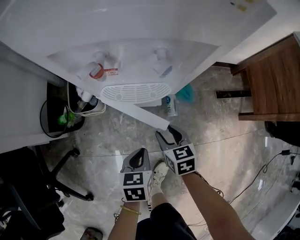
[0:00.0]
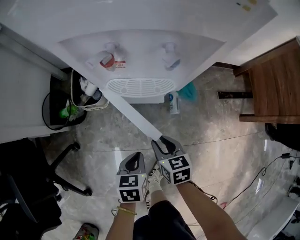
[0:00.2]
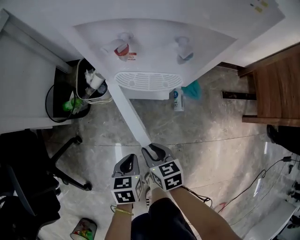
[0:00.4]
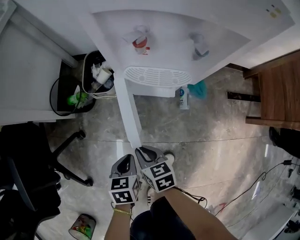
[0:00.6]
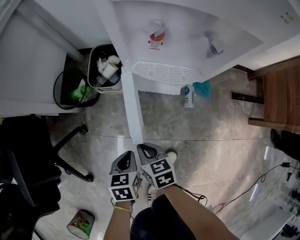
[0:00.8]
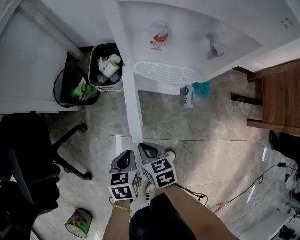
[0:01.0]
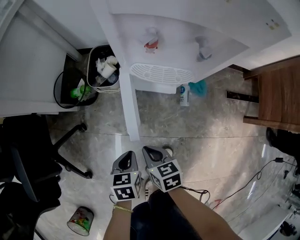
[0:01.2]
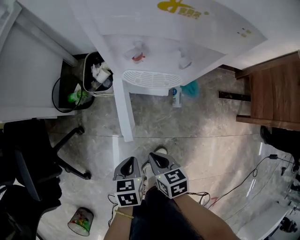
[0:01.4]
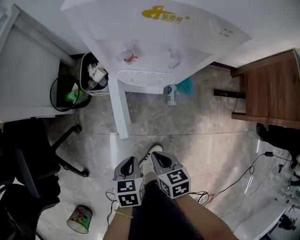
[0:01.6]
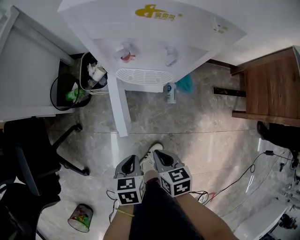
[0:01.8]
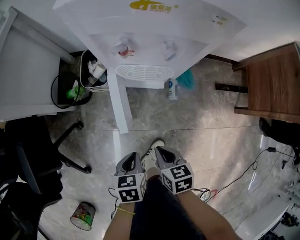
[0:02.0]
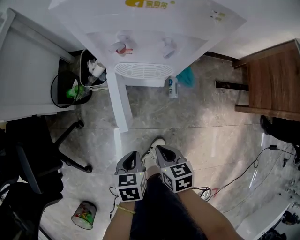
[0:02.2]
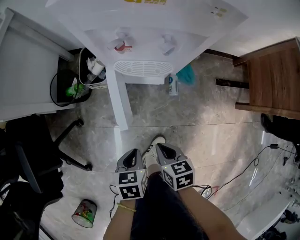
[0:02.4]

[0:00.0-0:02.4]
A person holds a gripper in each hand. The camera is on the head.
0:00.0 to 0:01.2: The grippers both shift to the left and backward by roughly 15 cm. The right gripper closes its fingers.
0:01.2 to 0:02.4: The left gripper moves upward and to the right, roughly 10 cm. The right gripper moves to the right and upward, about 10 cm.

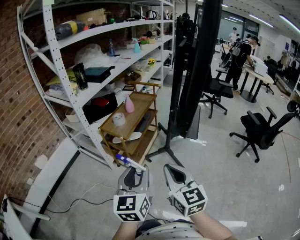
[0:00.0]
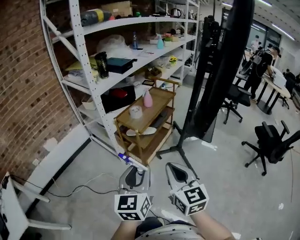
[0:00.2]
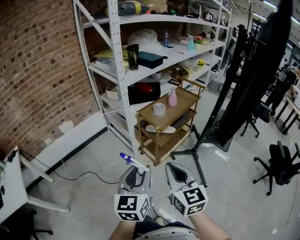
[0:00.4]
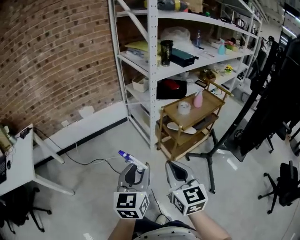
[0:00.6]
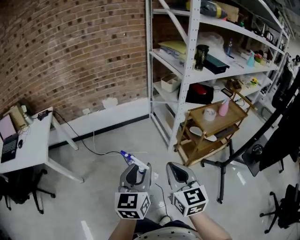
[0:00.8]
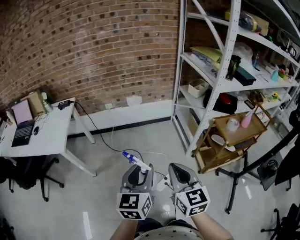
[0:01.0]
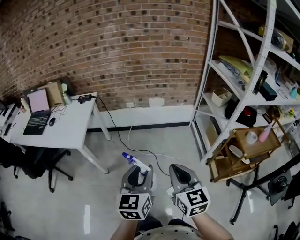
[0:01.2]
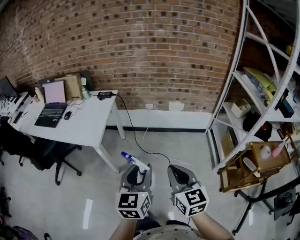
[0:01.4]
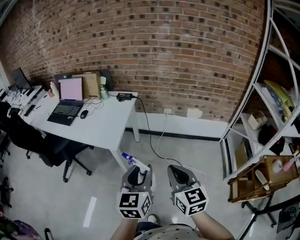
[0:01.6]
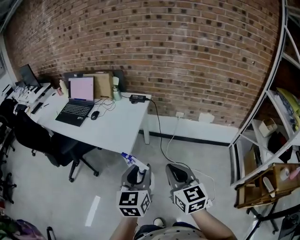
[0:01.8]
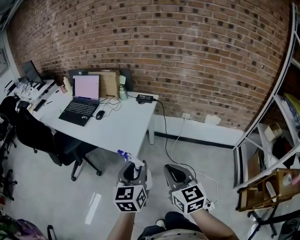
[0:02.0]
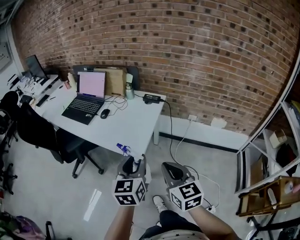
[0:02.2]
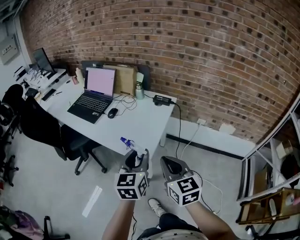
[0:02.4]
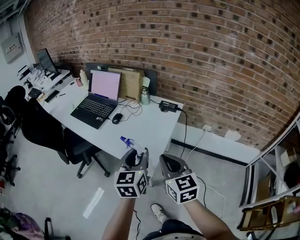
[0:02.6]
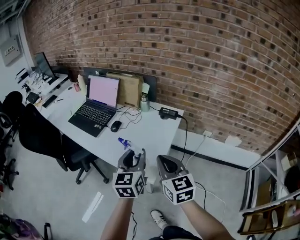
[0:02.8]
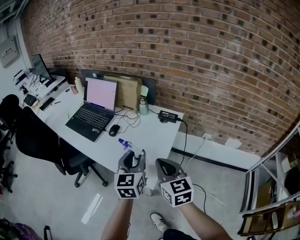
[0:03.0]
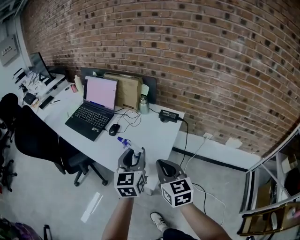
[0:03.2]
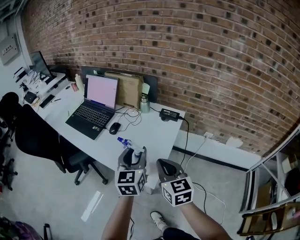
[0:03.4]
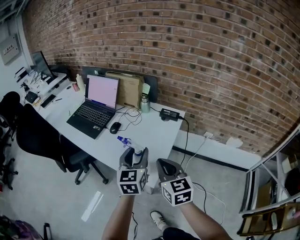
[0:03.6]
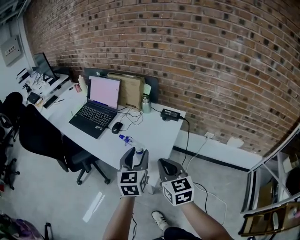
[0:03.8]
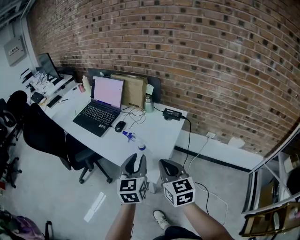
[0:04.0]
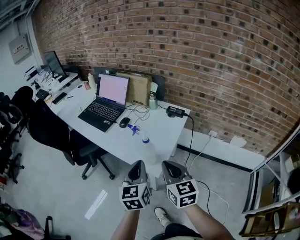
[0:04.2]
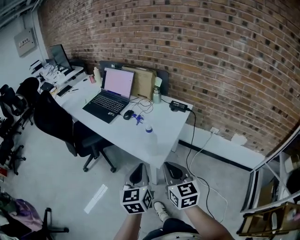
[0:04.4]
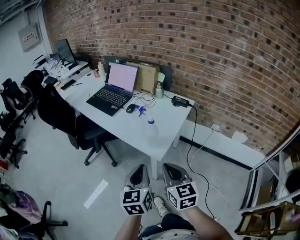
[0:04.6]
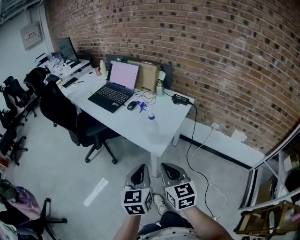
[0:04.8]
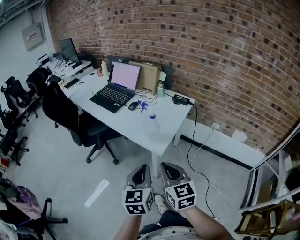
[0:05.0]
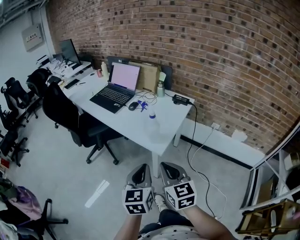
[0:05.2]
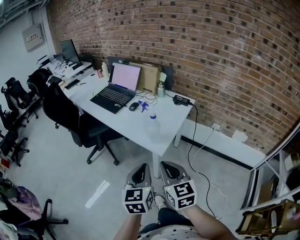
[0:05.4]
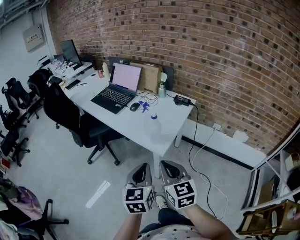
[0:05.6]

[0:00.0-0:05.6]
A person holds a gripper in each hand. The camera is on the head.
0:00.0 to 0:01.4: The two grippers travel together, some 60 cm. The left gripper changes its angle by about 60 degrees; the right gripper rotates approximately 70 degrees.
0:01.4 to 0:02.8: Both grippers are carried forward and to the left, about 50 cm. The left gripper turns by about 20 degrees; the right gripper rotates some 20 degrees.
0:02.8 to 0:04.2: The left gripper heads backward, covering roughly 10 cm, and closes its fingers. Meanwhile the right gripper is displaced backward by about 5 cm.
0:04.2 to 0:05.6: The right gripper travels backward and to the left by about 15 cm. Meanwhile the left gripper heads backward, covering approximately 15 cm.

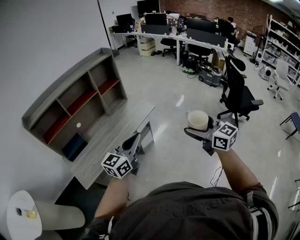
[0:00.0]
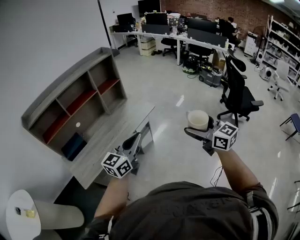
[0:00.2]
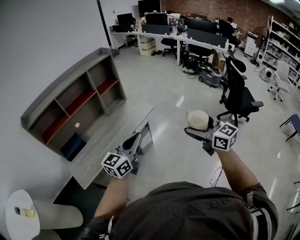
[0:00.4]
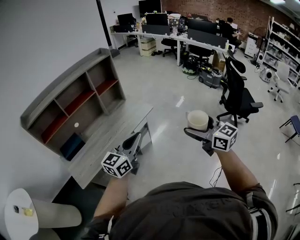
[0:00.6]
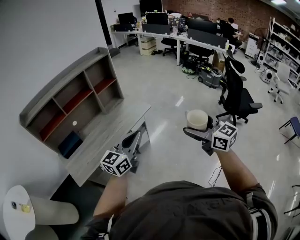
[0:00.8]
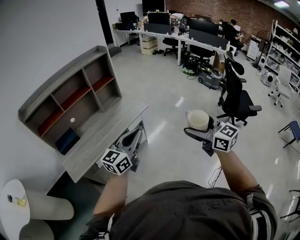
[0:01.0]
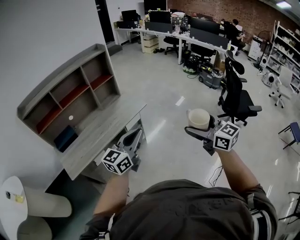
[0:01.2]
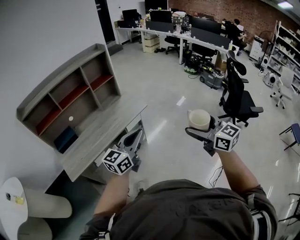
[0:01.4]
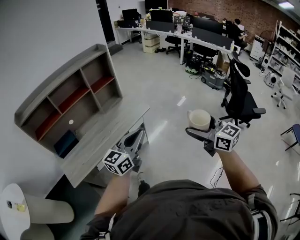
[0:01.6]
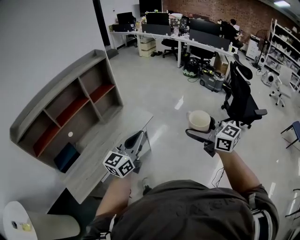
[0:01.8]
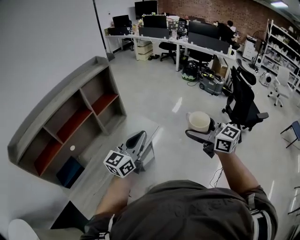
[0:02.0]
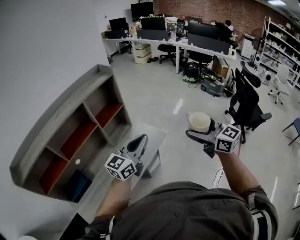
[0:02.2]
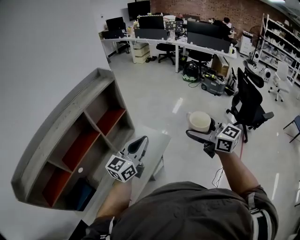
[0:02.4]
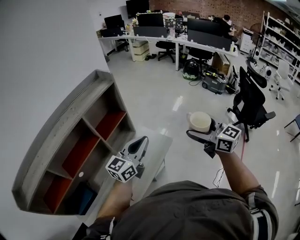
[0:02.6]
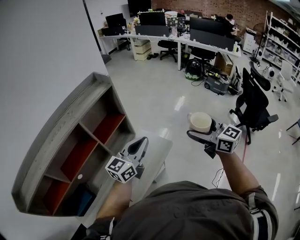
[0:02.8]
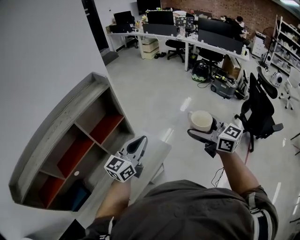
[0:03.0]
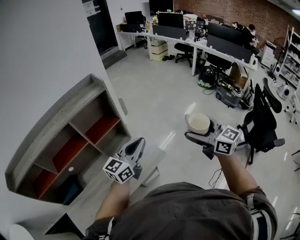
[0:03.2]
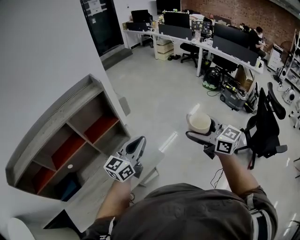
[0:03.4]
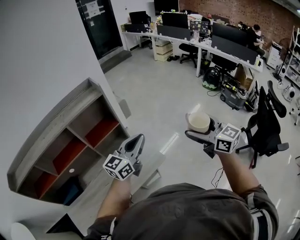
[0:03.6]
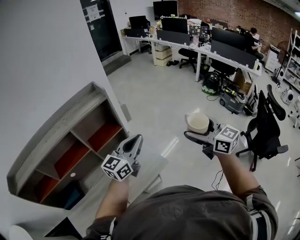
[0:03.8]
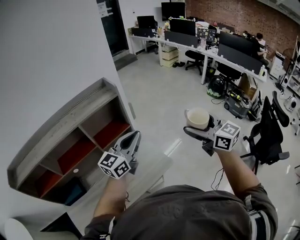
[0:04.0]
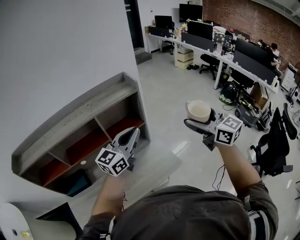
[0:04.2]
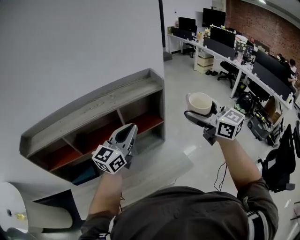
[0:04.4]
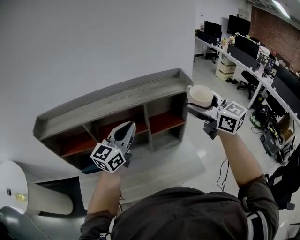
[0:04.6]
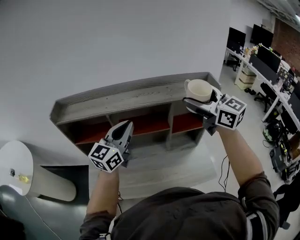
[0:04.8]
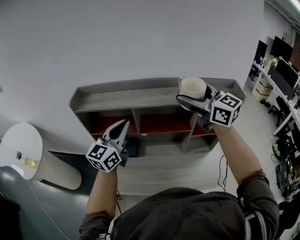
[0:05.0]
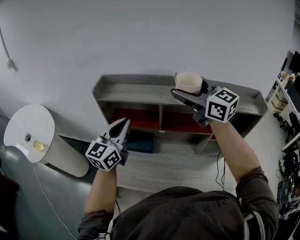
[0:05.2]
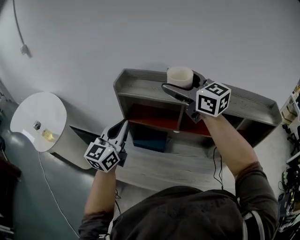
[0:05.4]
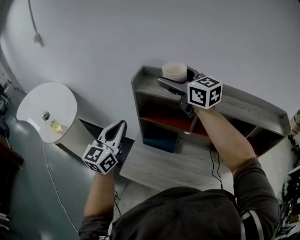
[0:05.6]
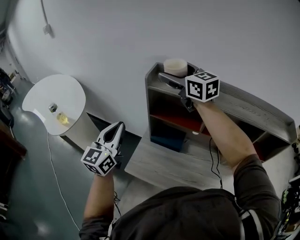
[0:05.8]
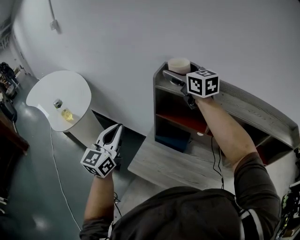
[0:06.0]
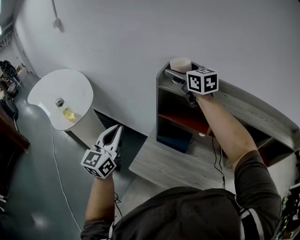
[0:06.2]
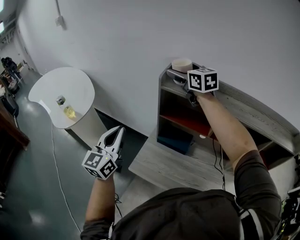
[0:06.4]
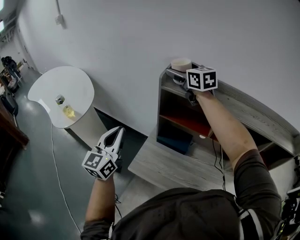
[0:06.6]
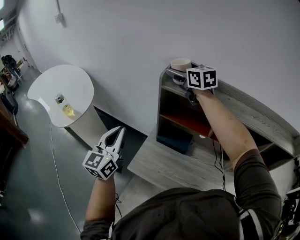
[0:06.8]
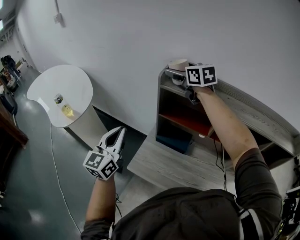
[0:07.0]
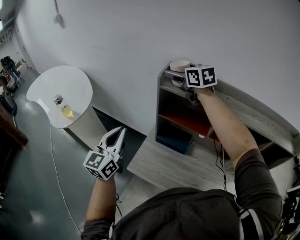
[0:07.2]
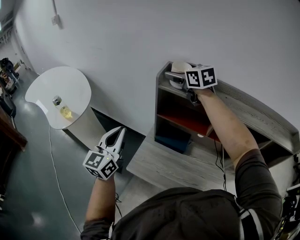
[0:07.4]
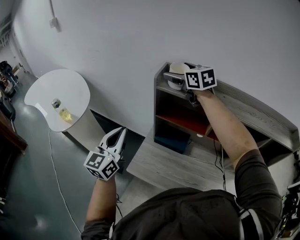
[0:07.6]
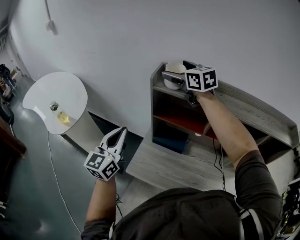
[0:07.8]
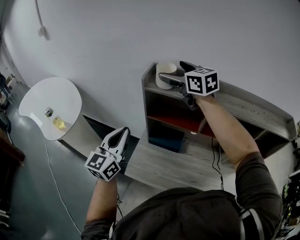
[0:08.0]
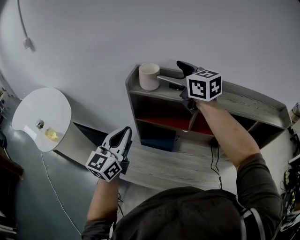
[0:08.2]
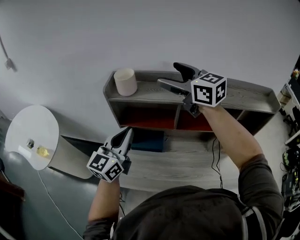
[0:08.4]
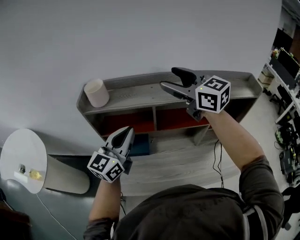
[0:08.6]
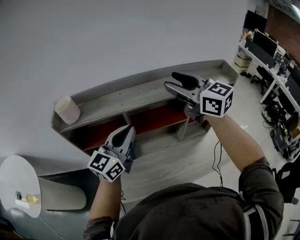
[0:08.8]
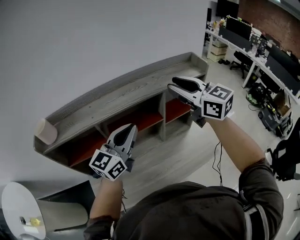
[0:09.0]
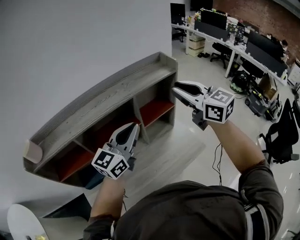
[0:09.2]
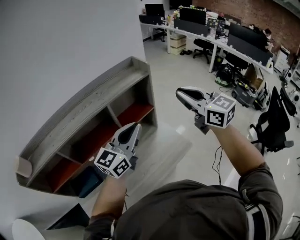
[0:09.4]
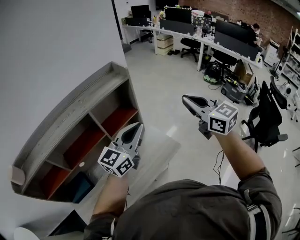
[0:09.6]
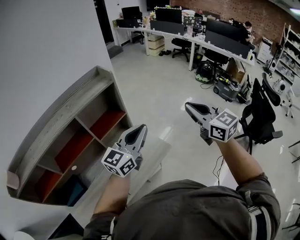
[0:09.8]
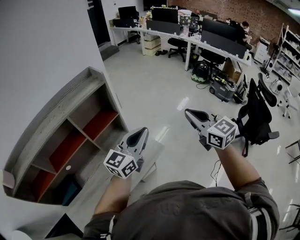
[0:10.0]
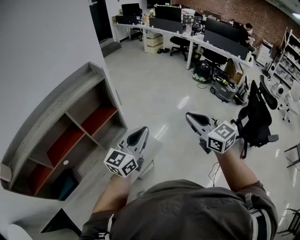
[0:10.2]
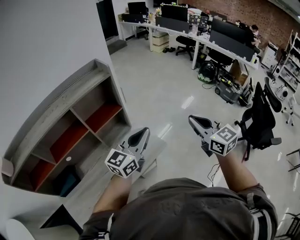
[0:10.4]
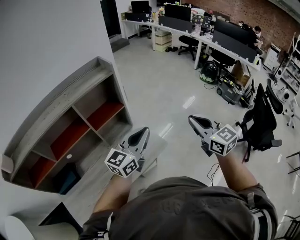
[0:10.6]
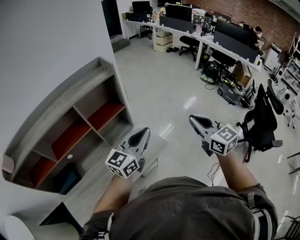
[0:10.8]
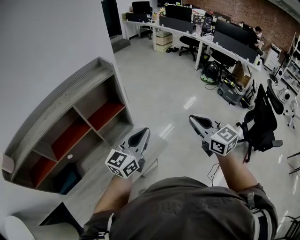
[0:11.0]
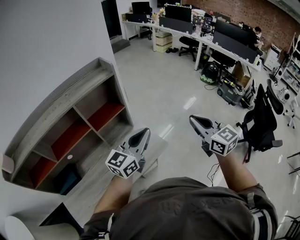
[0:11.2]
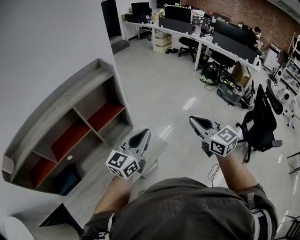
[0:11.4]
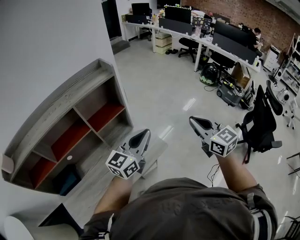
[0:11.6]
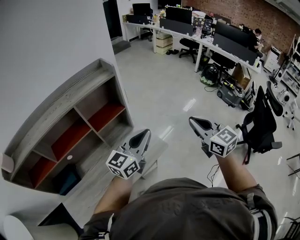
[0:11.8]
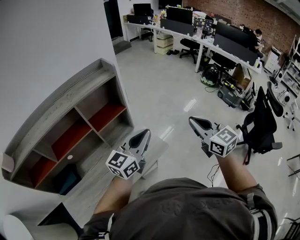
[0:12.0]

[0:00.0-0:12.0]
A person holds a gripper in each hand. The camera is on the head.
0:00.0 to 0:01.6: Both grippers move to the right and forward, about 10 cm.
0:01.6 to 0:03.0: The pair of grippers is taken forward, some 40 cm.
0:03.0 to 0:04.4: The right gripper shifts by some 25 cm, and rotates approximately 20 degrees, while the left gripper shifts by approximately 20 cm, and turns by roughly 30 degrees.
0:04.4 to 0:06.0: The pair of grippers is taken some 70 cm. The right gripper turns by roughly 40 degrees, while the left gripper swivels roughly 60 degrees.
0:06.0 to 0:07.6: The right gripper ends up about 5 cm from where it was.
0:07.6 to 0:09.0: The two grippers travel together, approximately 50 cm. The right gripper changes its angle by about 40 degrees, and closes up, while the left gripper changes its angle by about 60 degrees.
0:09.0 to 0:10.4: The two grippers travel together, about 50 cm. The left gripper swivels some 30 degrees; the right gripper changes its angle by about 30 degrees.
0:10.4 to 0:12.0: The grippers make only small movements.

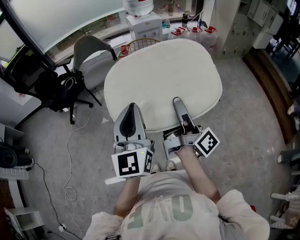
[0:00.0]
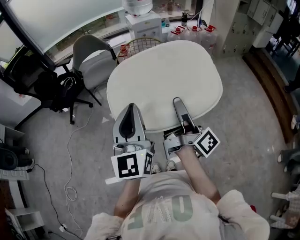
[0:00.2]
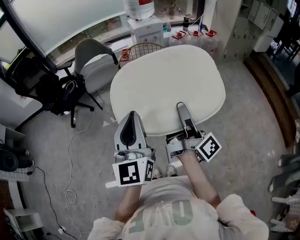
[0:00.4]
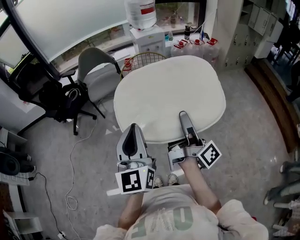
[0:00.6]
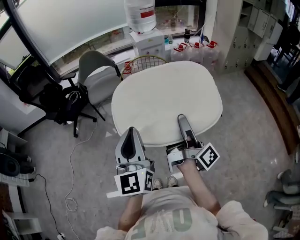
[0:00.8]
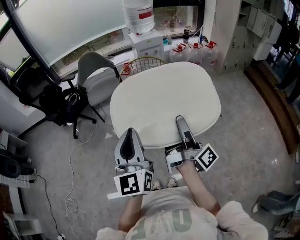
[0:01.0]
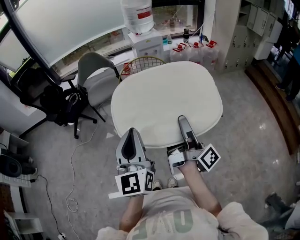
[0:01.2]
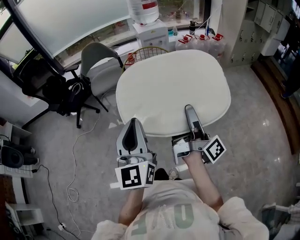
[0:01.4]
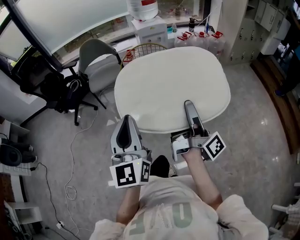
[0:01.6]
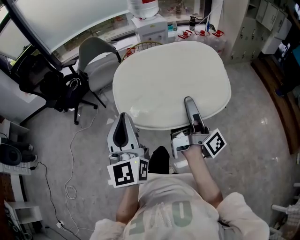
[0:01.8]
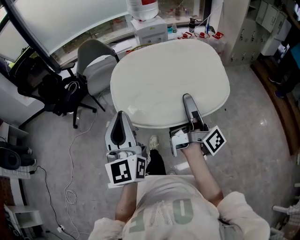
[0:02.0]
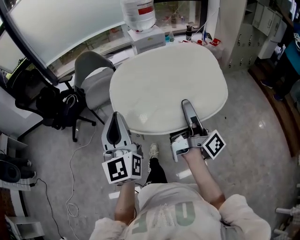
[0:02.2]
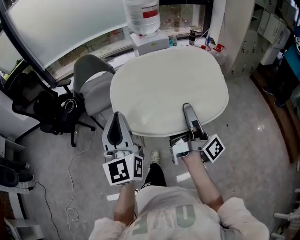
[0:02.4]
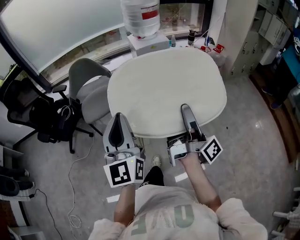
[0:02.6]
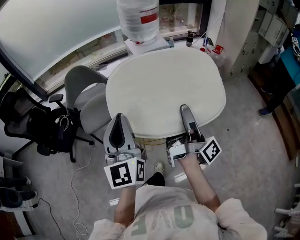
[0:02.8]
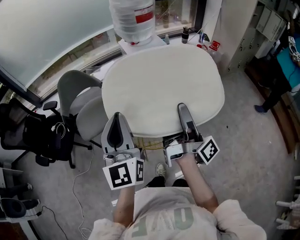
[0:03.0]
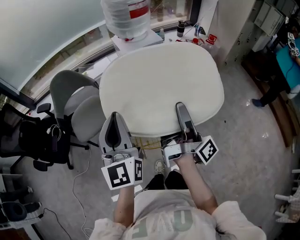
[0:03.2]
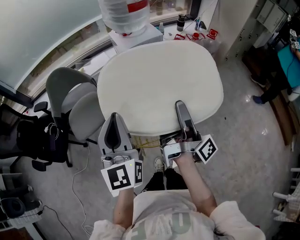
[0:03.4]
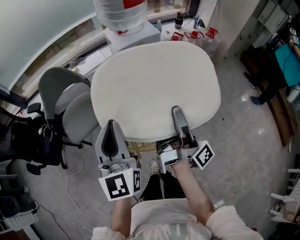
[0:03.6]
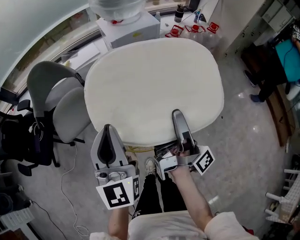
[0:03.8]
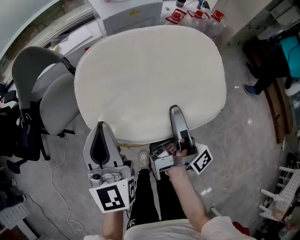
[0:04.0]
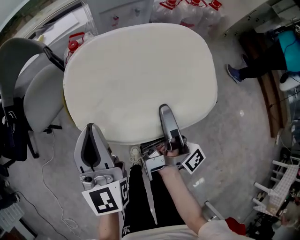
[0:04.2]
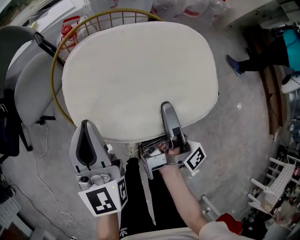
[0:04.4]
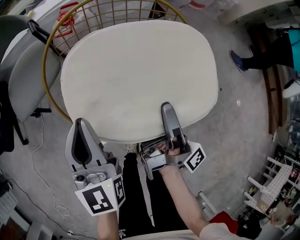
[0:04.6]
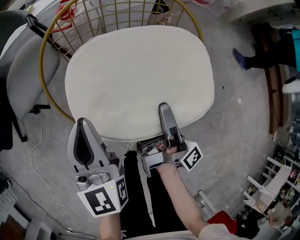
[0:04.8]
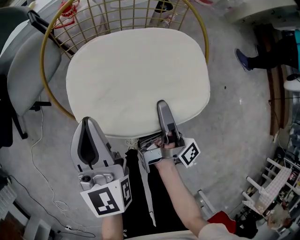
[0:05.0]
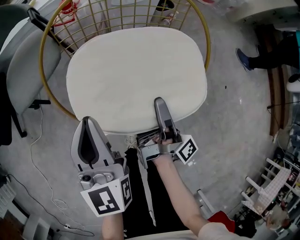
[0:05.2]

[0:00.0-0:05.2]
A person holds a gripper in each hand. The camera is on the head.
0:01.8 to 0:03.4: The left gripper changes place by roughly 50 cm.
0:03.4 to 0:05.2: The left gripper heads downward, covering some 35 cm, and swivels approximately 20 degrees.
